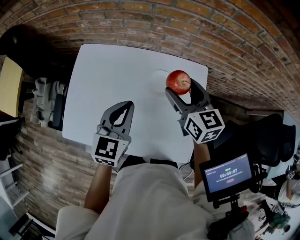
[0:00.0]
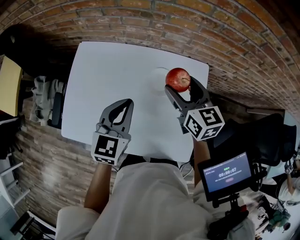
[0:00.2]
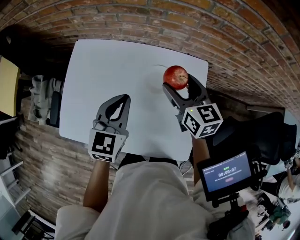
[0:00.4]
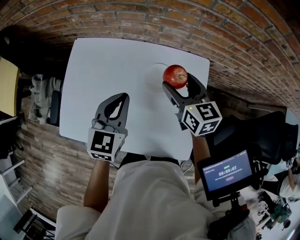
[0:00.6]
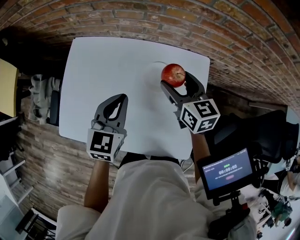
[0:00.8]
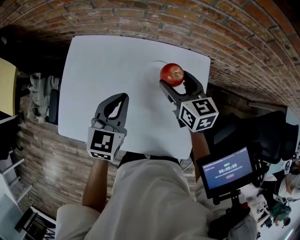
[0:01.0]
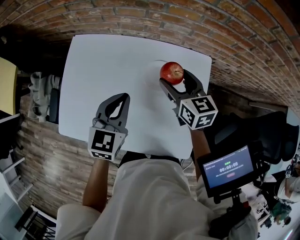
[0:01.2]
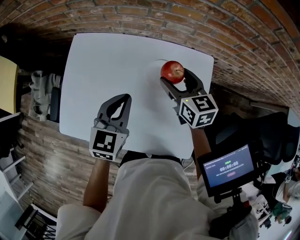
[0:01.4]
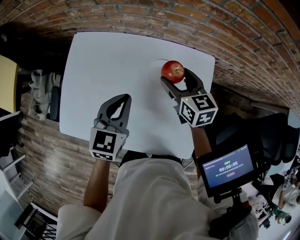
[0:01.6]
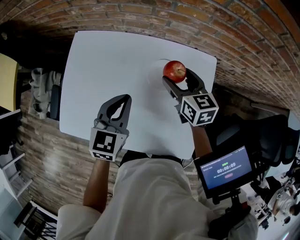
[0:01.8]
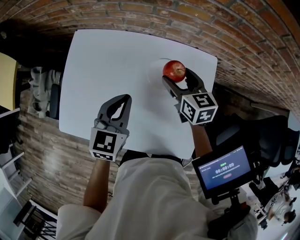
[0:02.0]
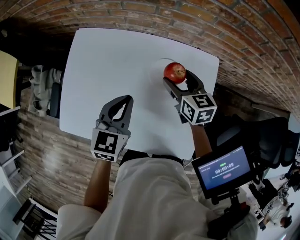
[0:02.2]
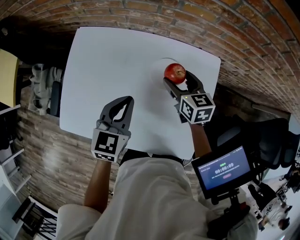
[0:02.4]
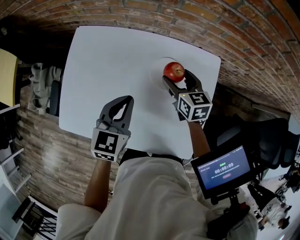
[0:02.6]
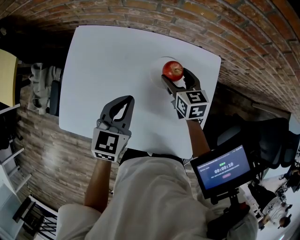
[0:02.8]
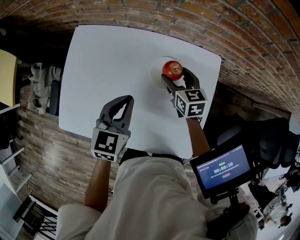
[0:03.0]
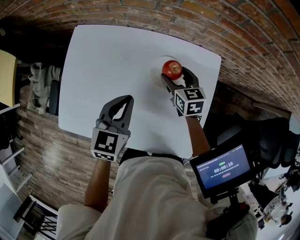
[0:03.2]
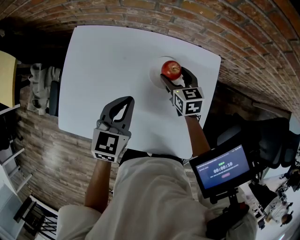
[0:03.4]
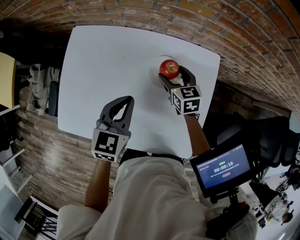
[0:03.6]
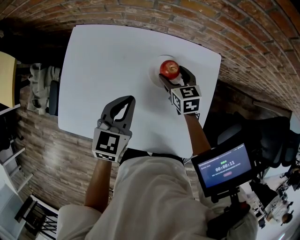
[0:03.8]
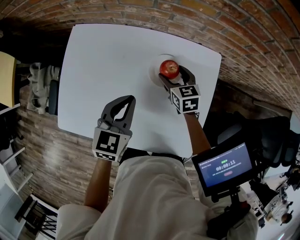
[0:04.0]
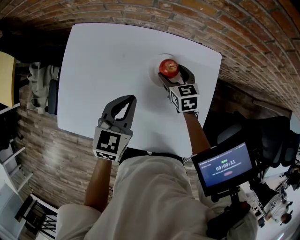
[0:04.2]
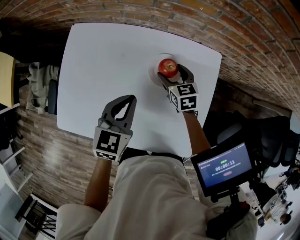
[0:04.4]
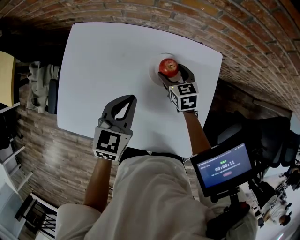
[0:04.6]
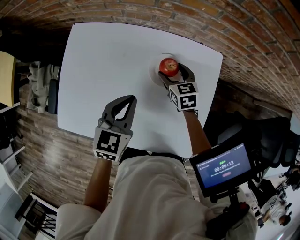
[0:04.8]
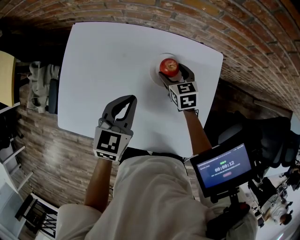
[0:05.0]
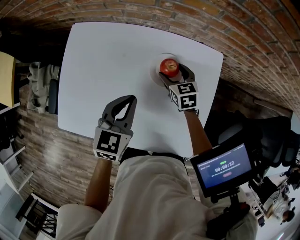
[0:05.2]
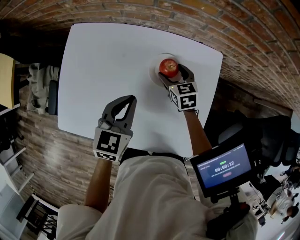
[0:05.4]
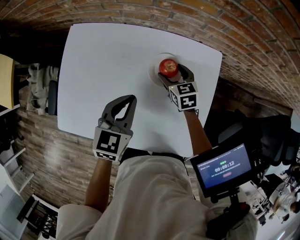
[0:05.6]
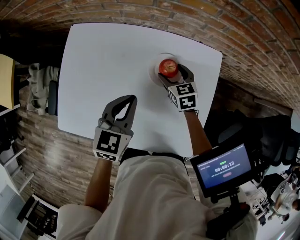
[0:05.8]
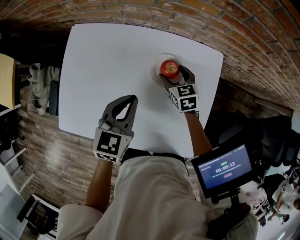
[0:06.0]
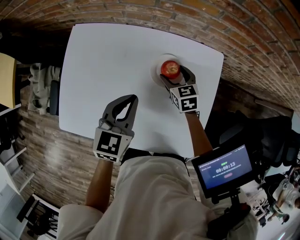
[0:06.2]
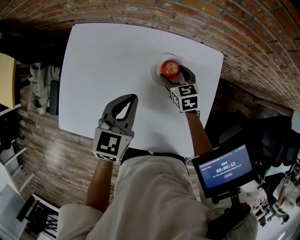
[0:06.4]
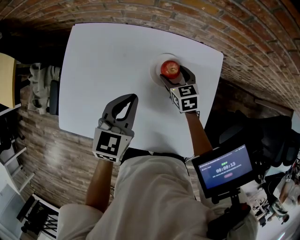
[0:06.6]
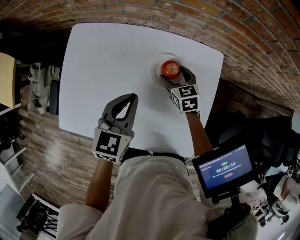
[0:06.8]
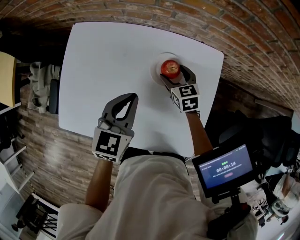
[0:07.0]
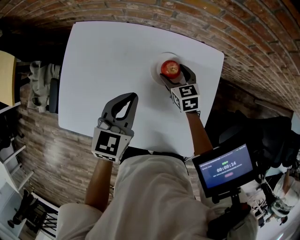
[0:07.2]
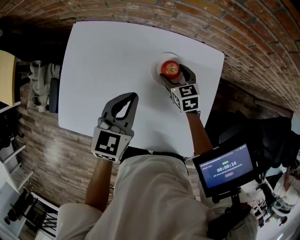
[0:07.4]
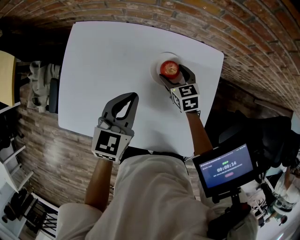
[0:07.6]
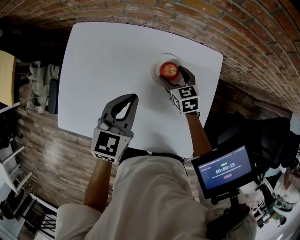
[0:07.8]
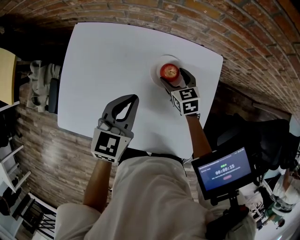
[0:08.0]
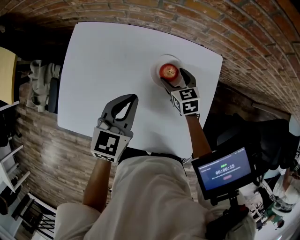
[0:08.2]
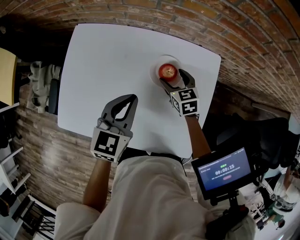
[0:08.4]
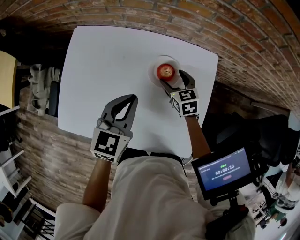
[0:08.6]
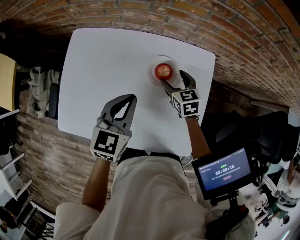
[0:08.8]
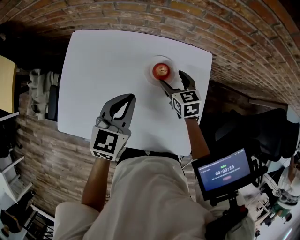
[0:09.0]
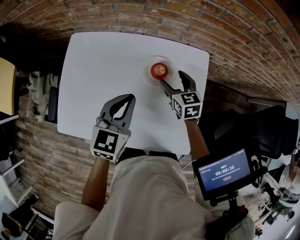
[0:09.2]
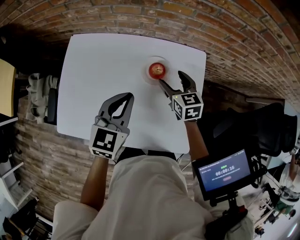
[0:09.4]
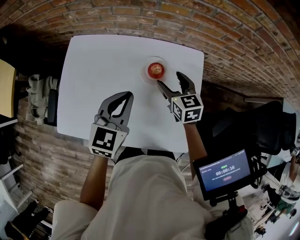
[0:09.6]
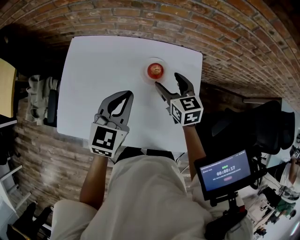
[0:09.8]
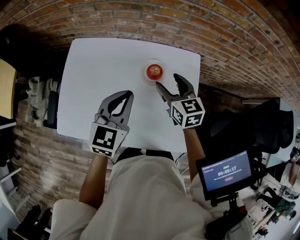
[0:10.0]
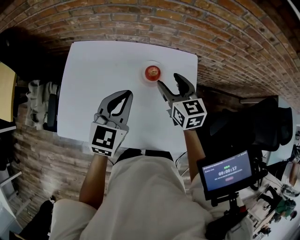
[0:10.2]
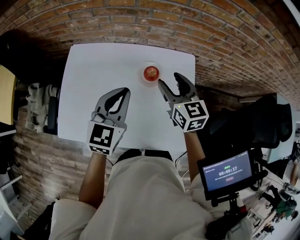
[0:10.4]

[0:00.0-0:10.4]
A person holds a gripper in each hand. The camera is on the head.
0:00.0 to 0:01.4: The left gripper moves approximately 5 cm, while the right gripper heads downward, covering approximately 10 cm.
0:01.4 to 0:03.0: The right gripper shifts approximately 10 cm downward.
0:03.0 to 0:06.0: The grippers move only a little.
0:06.0 to 0:07.4: Both grippers stay about where they are.
0:07.4 to 0:09.0: The right gripper travels upward by approximately 5 cm.
0:09.0 to 0:10.4: The right gripper travels upward by some 15 cm, while the left gripper shifts some 5 cm upward.

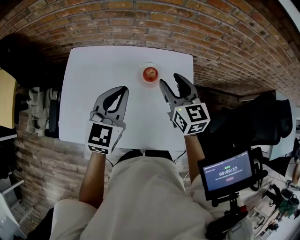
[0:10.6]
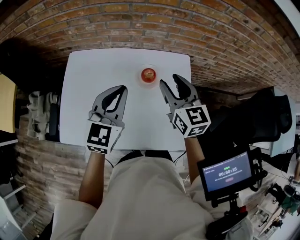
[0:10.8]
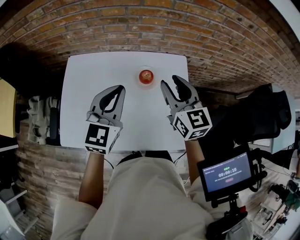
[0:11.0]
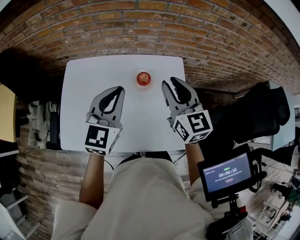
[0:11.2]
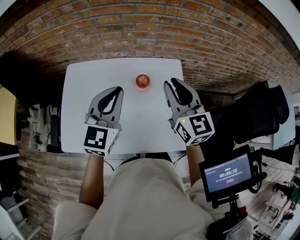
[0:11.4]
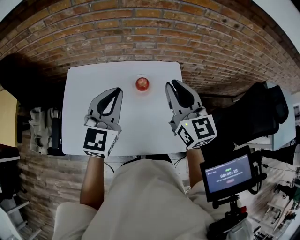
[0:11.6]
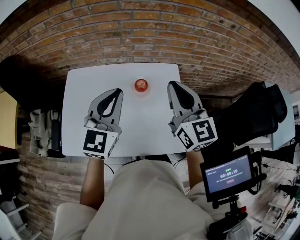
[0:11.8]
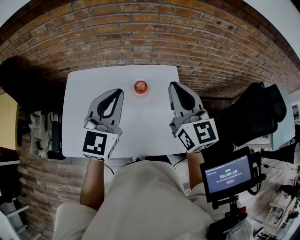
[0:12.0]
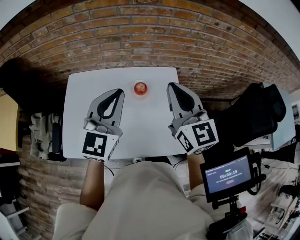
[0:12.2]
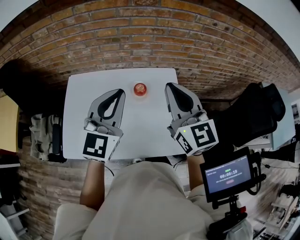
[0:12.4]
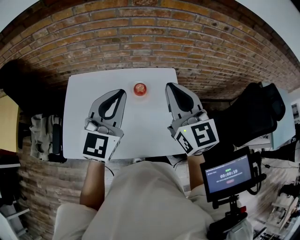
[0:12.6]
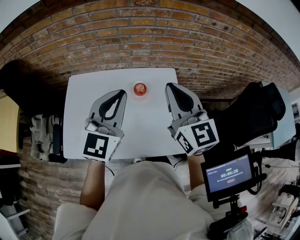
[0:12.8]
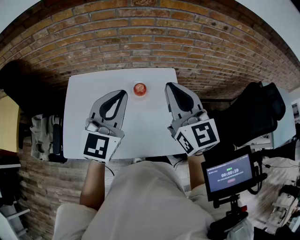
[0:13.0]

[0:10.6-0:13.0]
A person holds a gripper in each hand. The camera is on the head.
0:10.6 to 0:11.8: The left gripper is displaced upward by some 10 cm, while the right gripper moves upward and backward, some 15 cm, and closes its fingers.
0:11.8 to 0:13.0: The left gripper changes place by some 5 cm.

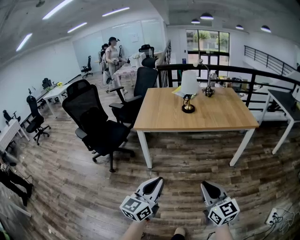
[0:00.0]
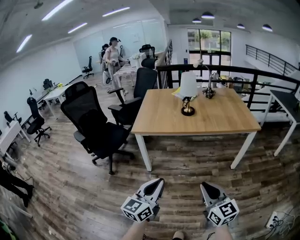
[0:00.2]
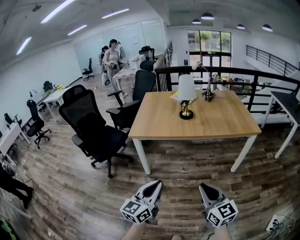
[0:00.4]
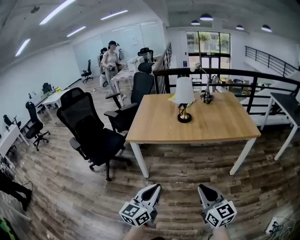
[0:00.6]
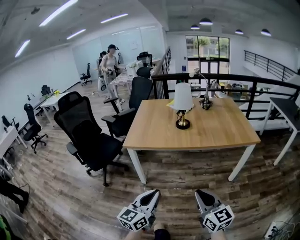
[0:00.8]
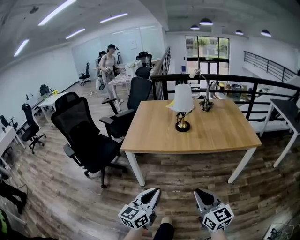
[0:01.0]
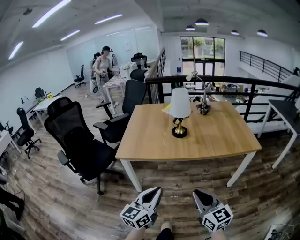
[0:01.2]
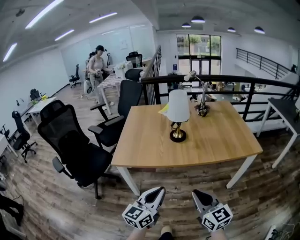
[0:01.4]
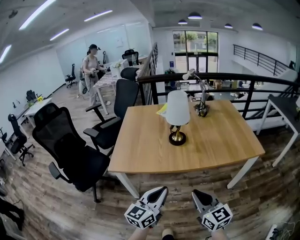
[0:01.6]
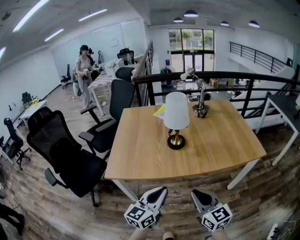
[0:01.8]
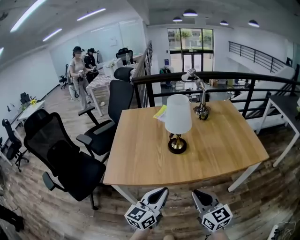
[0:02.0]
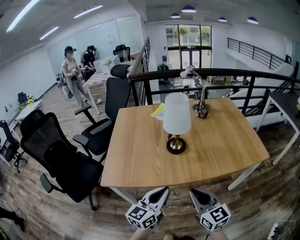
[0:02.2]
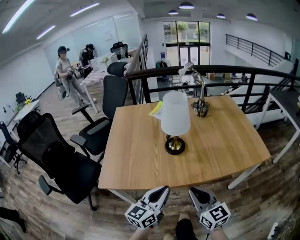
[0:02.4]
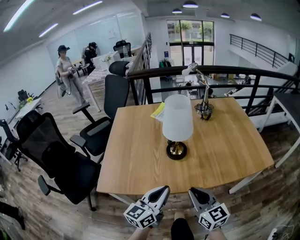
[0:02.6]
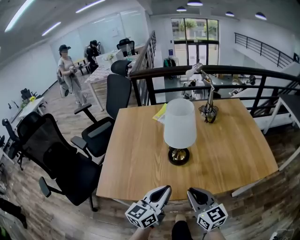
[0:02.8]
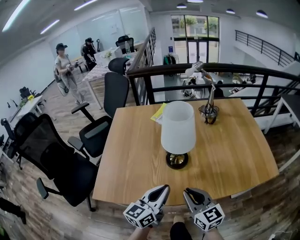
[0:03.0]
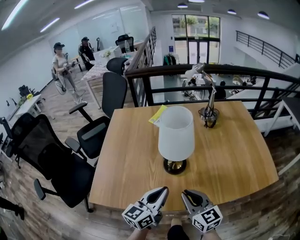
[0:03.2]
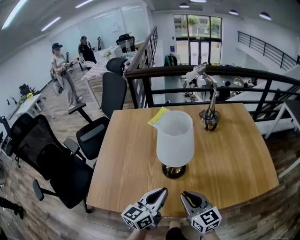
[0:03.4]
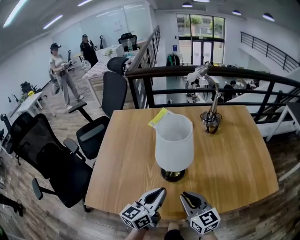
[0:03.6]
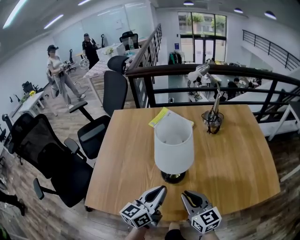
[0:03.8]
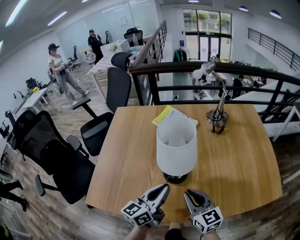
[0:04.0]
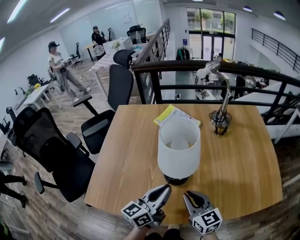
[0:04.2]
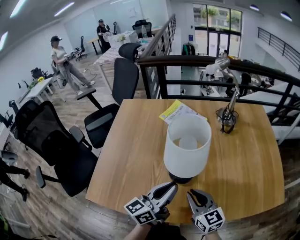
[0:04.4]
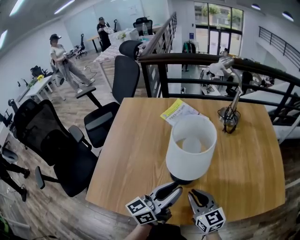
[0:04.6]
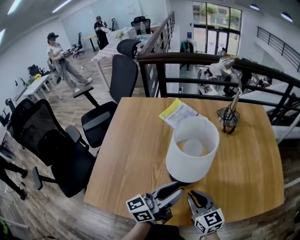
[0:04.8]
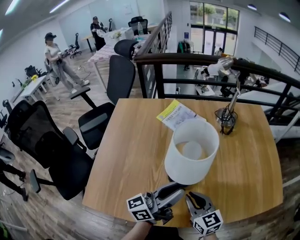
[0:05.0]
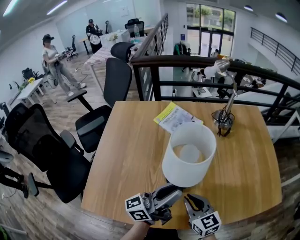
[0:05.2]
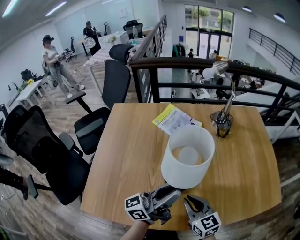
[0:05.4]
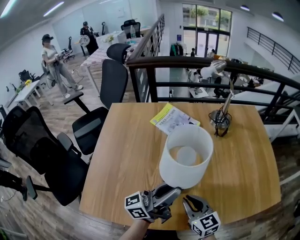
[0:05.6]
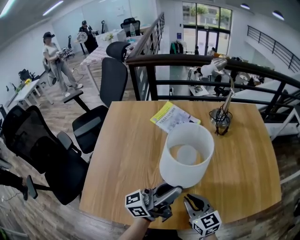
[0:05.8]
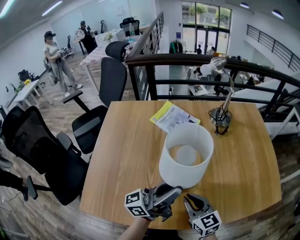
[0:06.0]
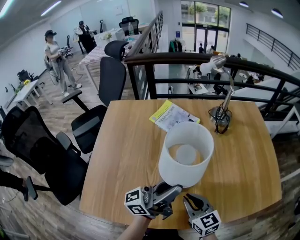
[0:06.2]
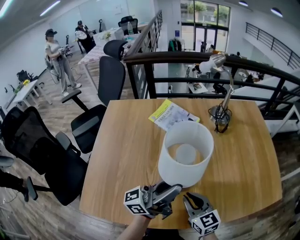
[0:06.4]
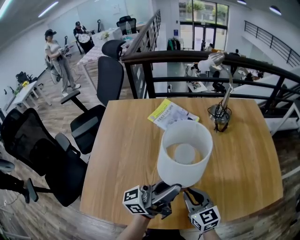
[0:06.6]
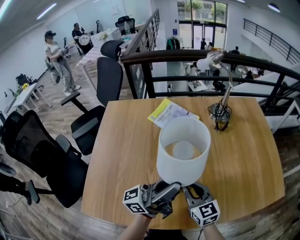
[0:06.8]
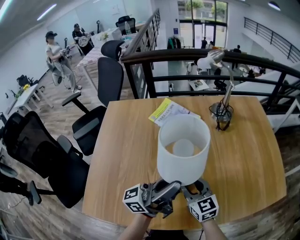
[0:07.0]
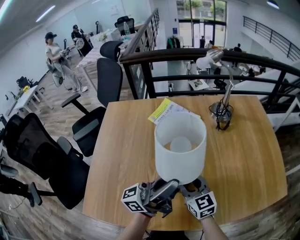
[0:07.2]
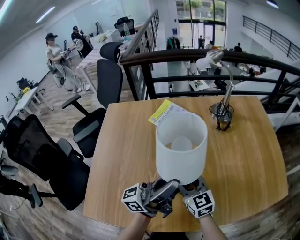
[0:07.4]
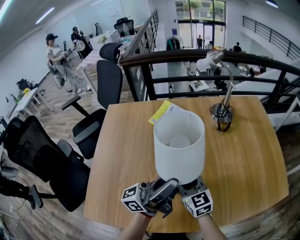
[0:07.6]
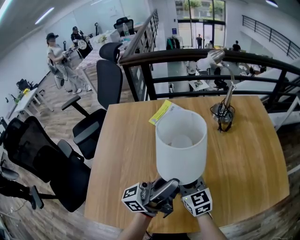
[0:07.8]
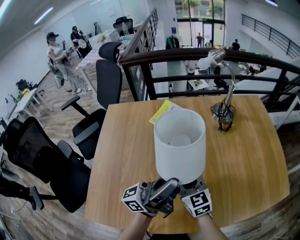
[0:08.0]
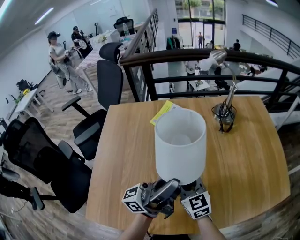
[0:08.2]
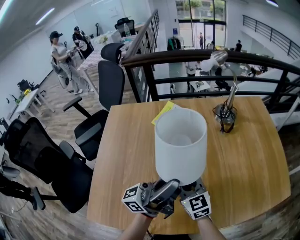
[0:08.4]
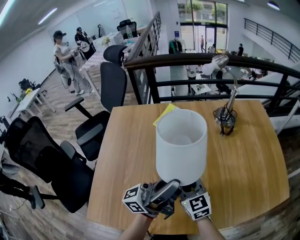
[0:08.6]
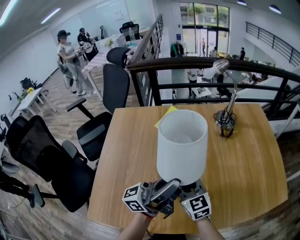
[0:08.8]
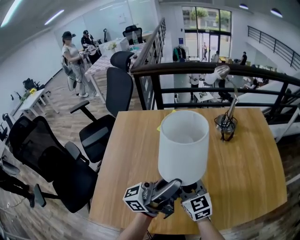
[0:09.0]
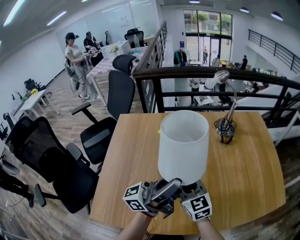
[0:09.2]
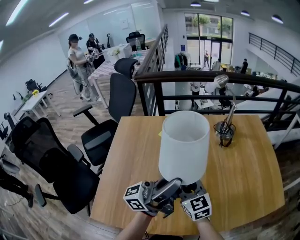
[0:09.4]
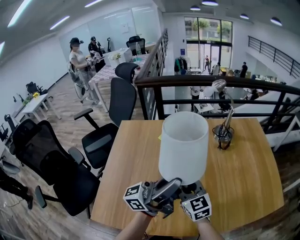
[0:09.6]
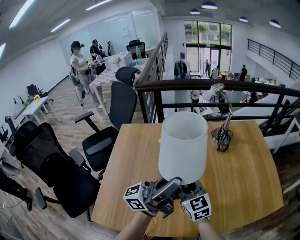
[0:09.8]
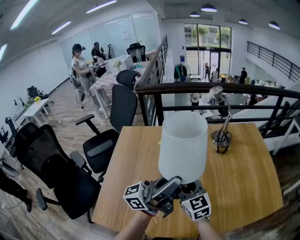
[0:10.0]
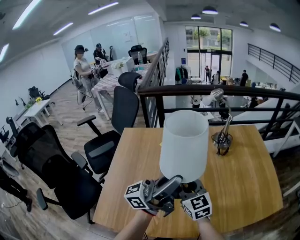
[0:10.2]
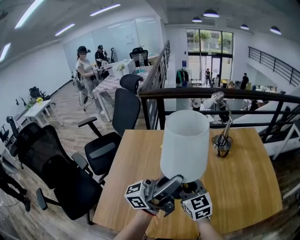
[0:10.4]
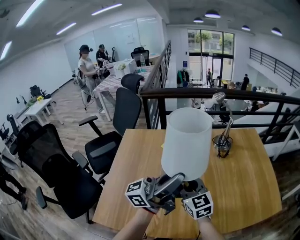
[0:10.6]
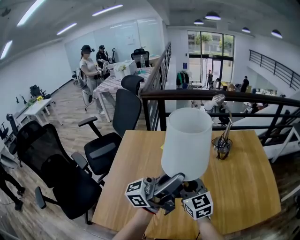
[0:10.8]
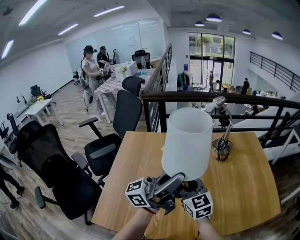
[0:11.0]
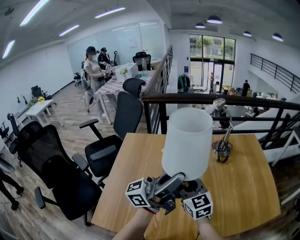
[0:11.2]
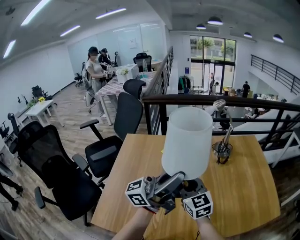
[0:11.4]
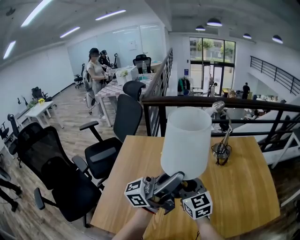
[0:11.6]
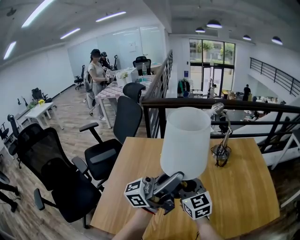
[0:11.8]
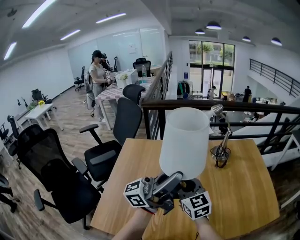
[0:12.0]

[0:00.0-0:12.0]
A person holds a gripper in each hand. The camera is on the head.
0:00.0 to 0:01.6: Both grippers travel together forward, approximately 35 cm.
0:01.6 to 0:03.0: Both grippers travel together forward, about 25 cm.
0:03.0 to 0:04.4: The grippers both shift forward by approximately 10 cm.
0:04.4 to 0:06.0: The left gripper travels upward by some 5 cm, turns by roughly 40 degrees, and opens up.
0:06.0 to 0:07.6: The right gripper moves forward and to the left, approximately 10 cm, and opens.
0:07.6 to 0:09.0: The left gripper heads upward, covering approximately 5 cm. The right gripper shifts by about 5 cm.
0:09.0 to 0:10.4: Both grippers travel together upward, some 10 cm.
0:10.4 to 0:12.0: The grippers make only small movements.
